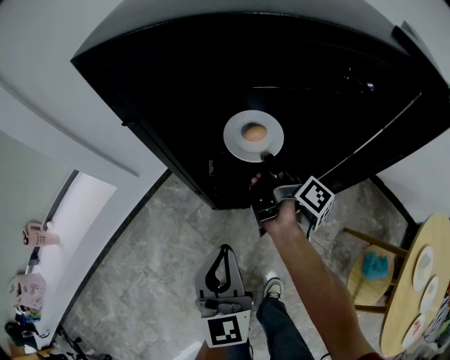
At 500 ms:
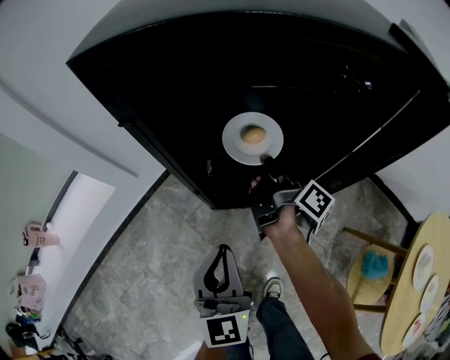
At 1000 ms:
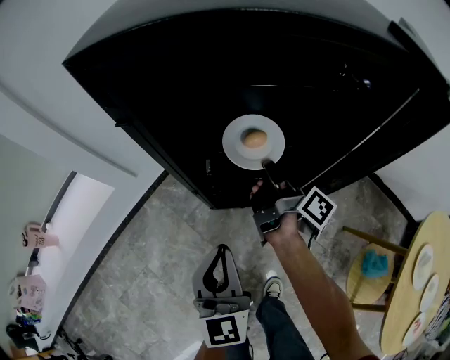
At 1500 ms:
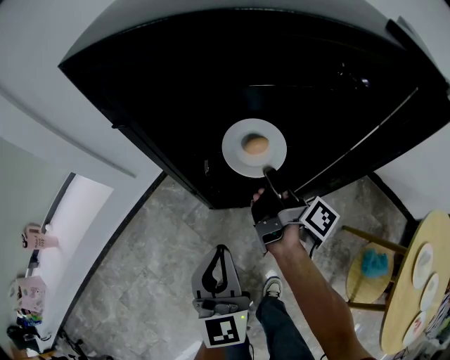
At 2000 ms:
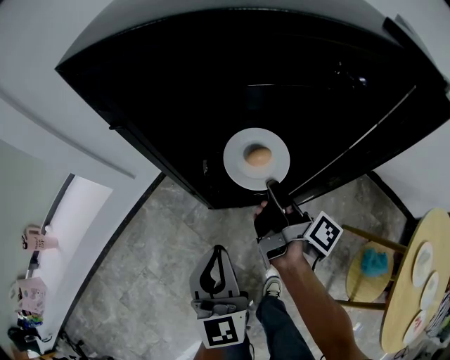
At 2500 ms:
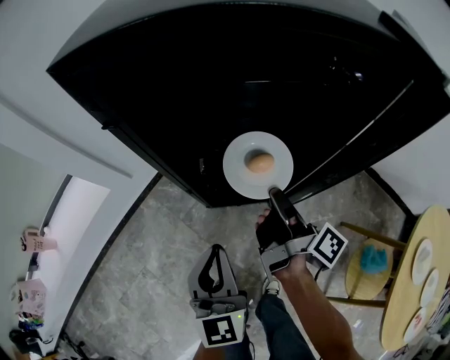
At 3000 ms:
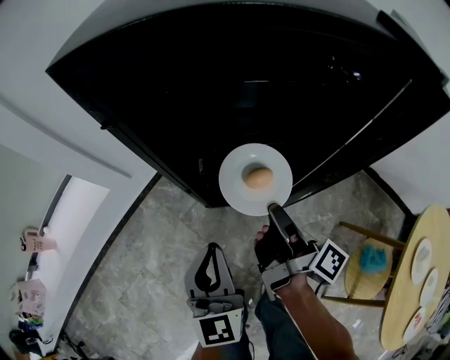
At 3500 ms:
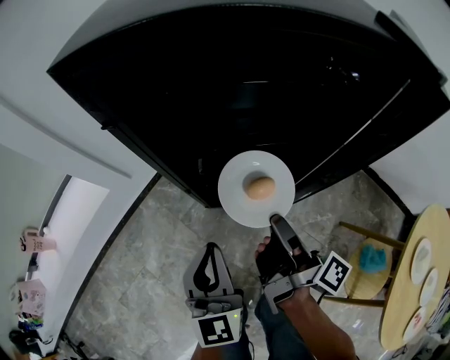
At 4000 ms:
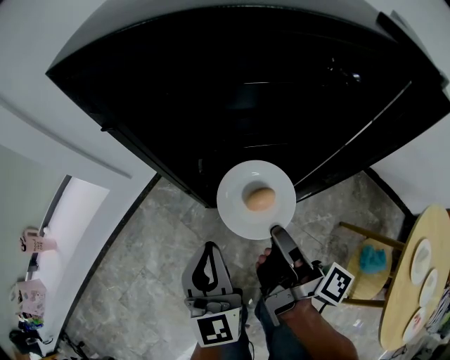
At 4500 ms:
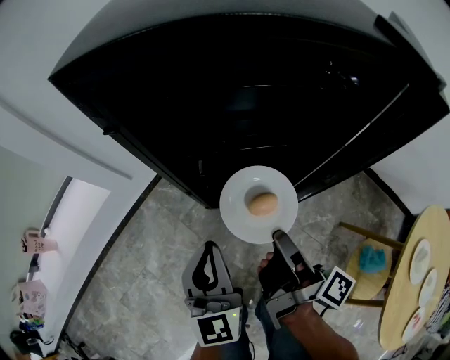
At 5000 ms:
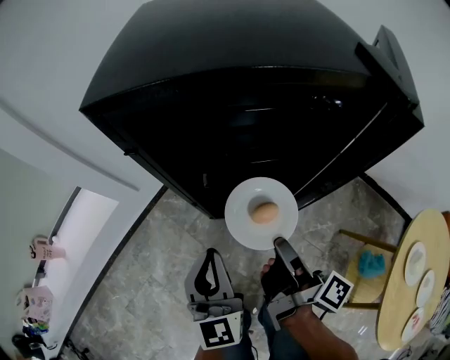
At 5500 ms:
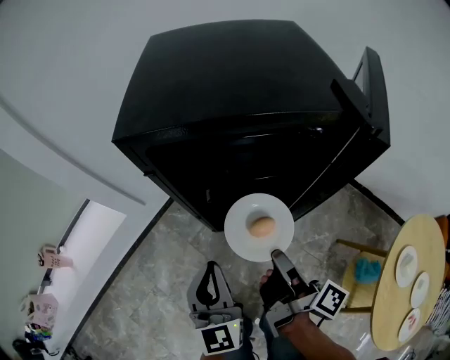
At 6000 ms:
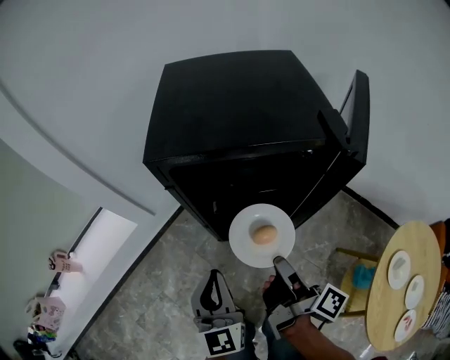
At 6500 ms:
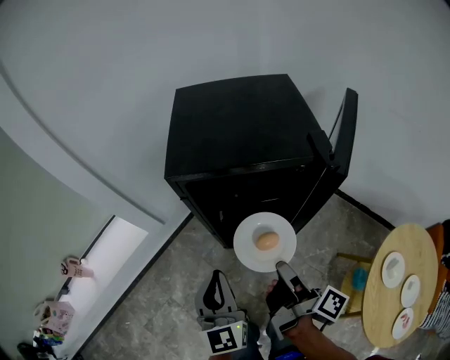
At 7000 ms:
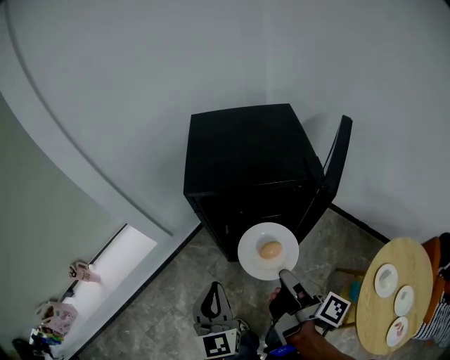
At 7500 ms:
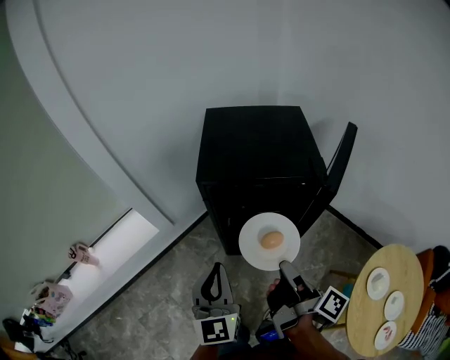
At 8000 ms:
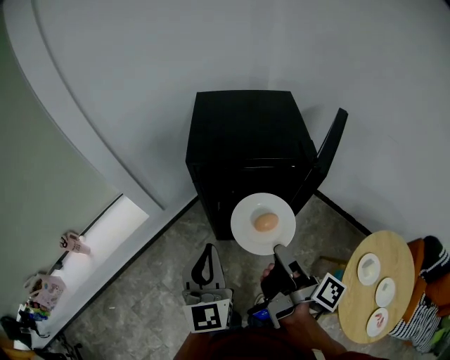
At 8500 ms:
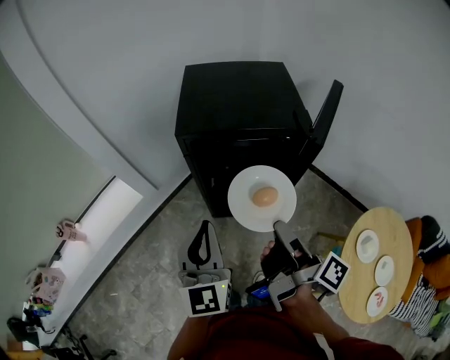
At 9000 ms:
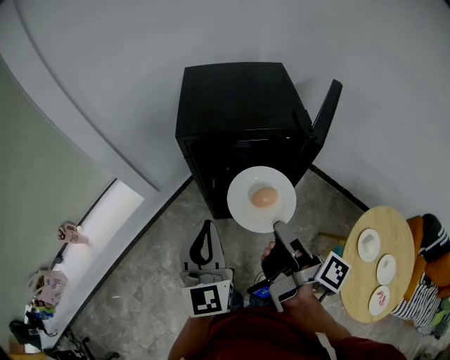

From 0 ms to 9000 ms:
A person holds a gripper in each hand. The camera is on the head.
From 0 ms to 2000 ms: The right gripper travels backward by approximately 10 cm.
From 2000 ms to 4500 ms: The right gripper goes roughly 10 cm backward.
From 4500 ms to 7000 ms: Both grippers travel together upward, approximately 25 cm.
From 7000 ms to 9000 ms: The grippers both shift upward by about 5 cm.

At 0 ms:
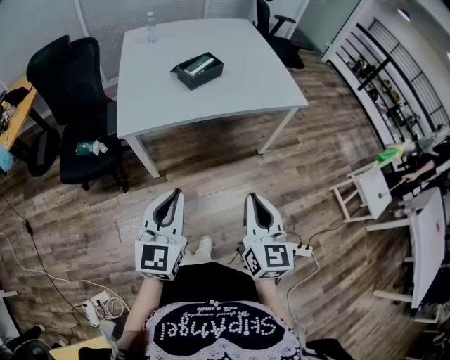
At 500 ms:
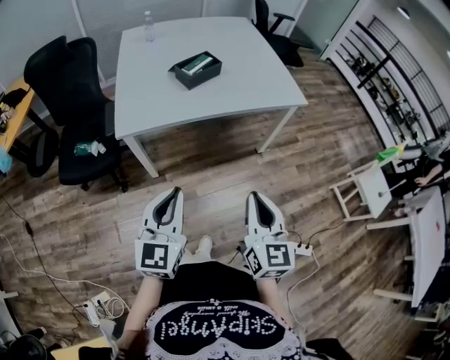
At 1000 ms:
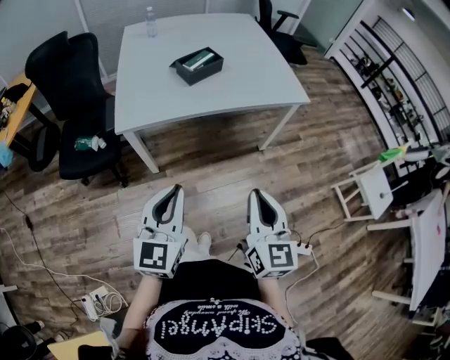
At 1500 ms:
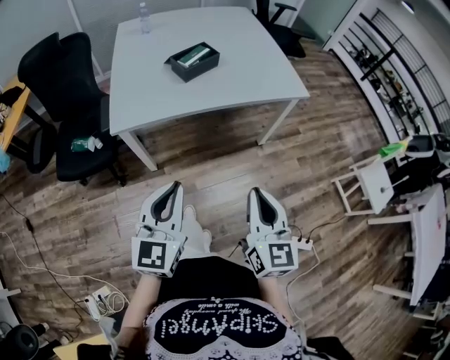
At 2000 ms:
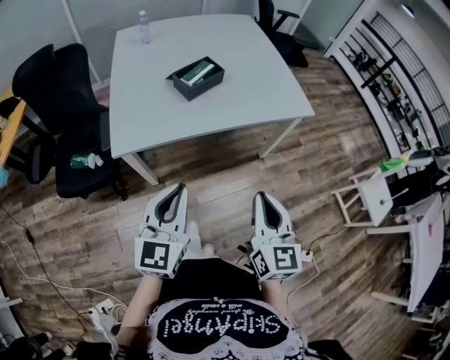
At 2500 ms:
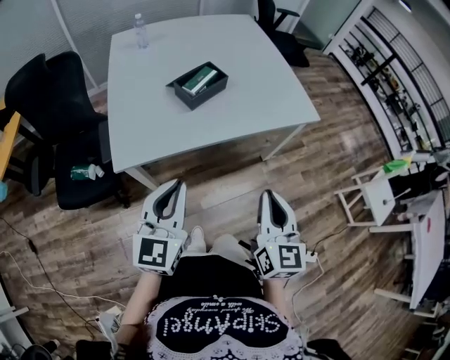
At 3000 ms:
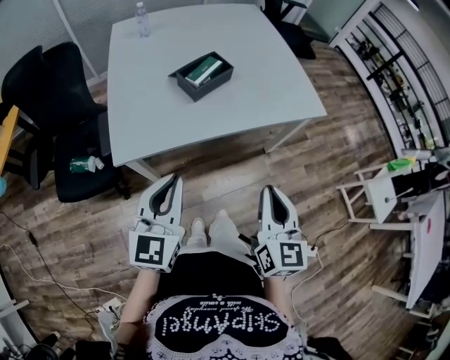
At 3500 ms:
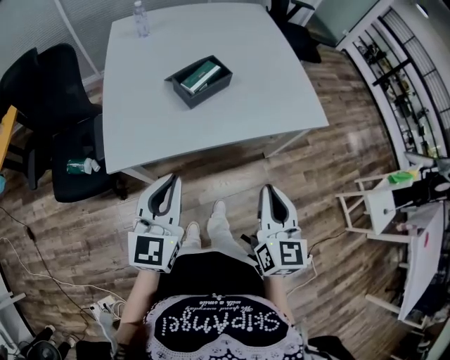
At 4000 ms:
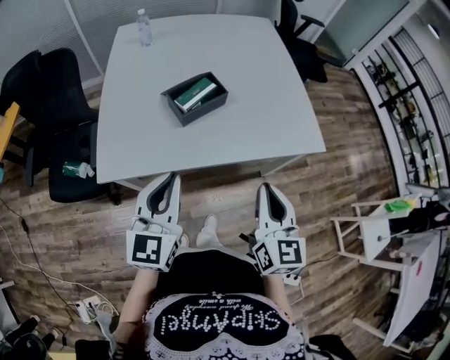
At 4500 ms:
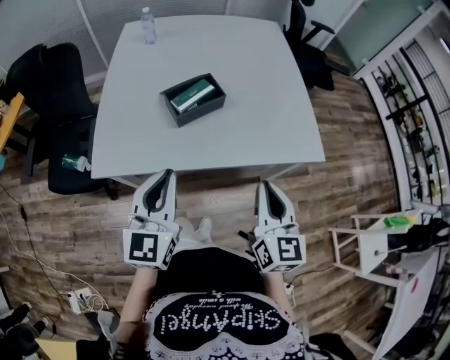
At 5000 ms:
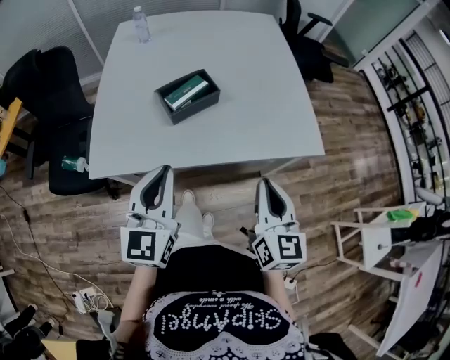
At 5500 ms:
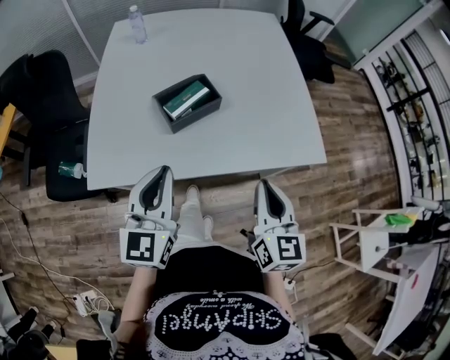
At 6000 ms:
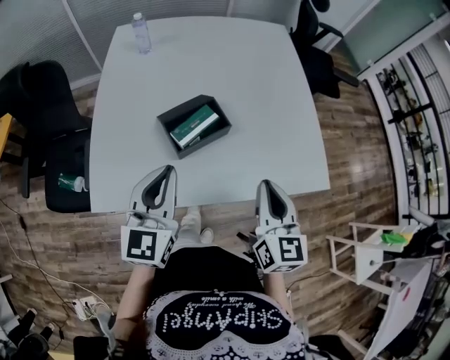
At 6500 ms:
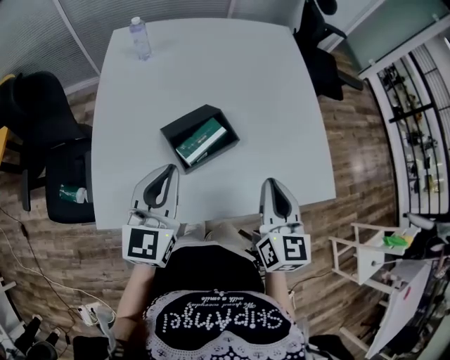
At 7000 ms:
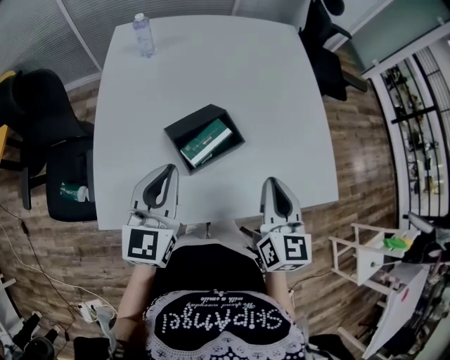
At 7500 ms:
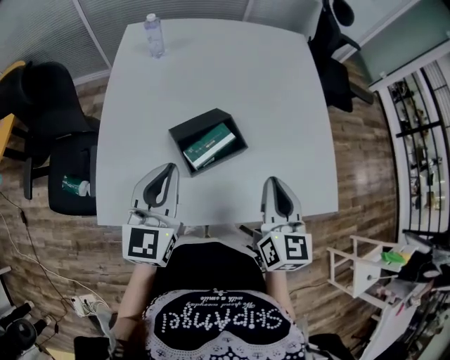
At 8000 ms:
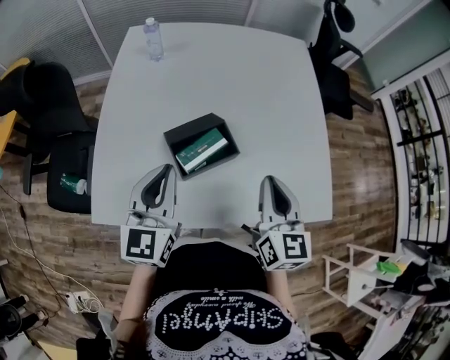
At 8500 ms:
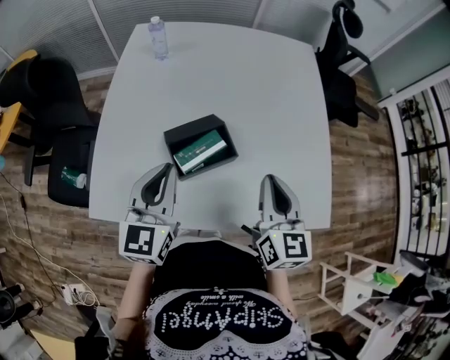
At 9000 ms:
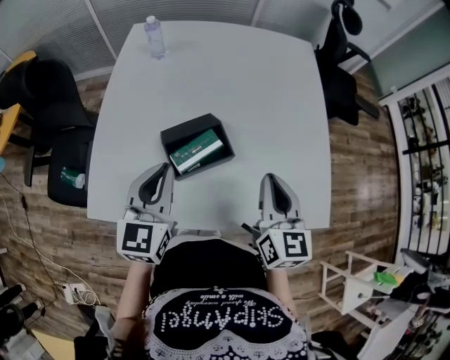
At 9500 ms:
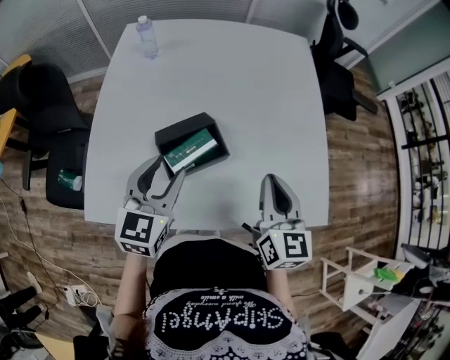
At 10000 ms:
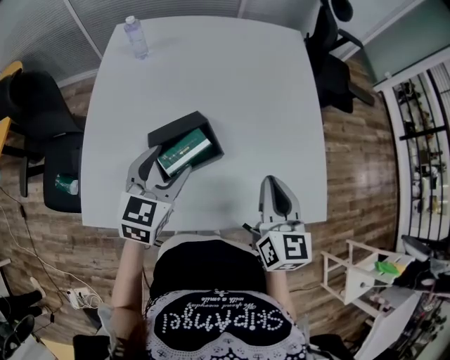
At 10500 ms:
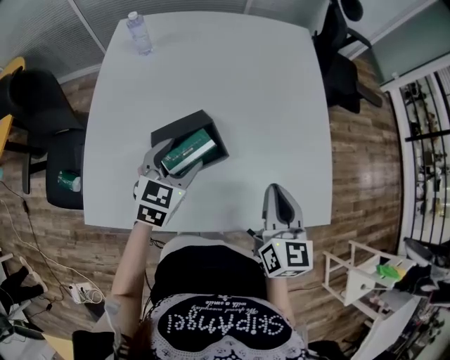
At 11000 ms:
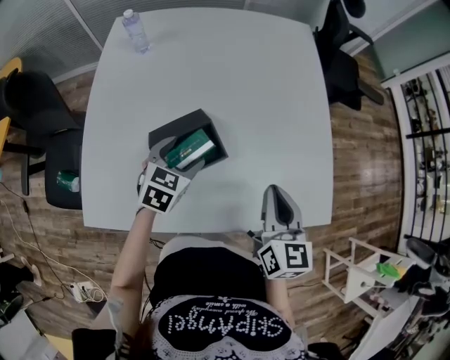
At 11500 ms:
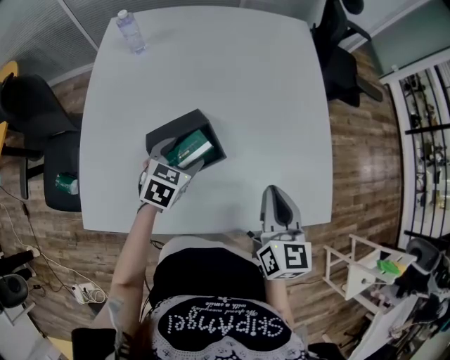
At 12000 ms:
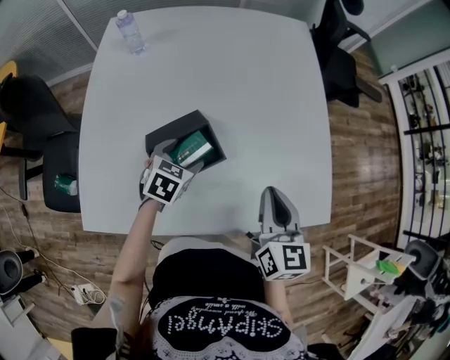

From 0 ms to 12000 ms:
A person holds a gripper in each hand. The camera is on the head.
From 0 ms to 2000 ms: Both grippers travel together forward, roughly 10 cm.
From 2000 ms to 4000 ms: The grippers both shift forward by about 20 cm.
From 4000 ms to 6000 ms: The grippers both shift forward by about 15 cm.
From 6000 ms to 8000 ms: The two grippers go some 10 cm forward.
From 8000 ms to 10000 ms: The left gripper moves downward, to the right and forward, roughly 10 cm, changes its angle by roughly 20 degrees, and opens its fingers. Meanwhile the right gripper heads to the right, covering some 5 cm.
From 10000 ms to 12000 ms: The left gripper is displaced downward by about 15 cm, and changes its angle by approximately 30 degrees.

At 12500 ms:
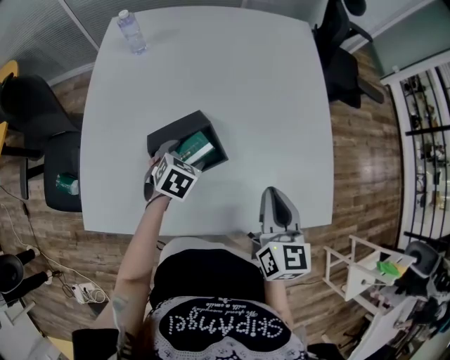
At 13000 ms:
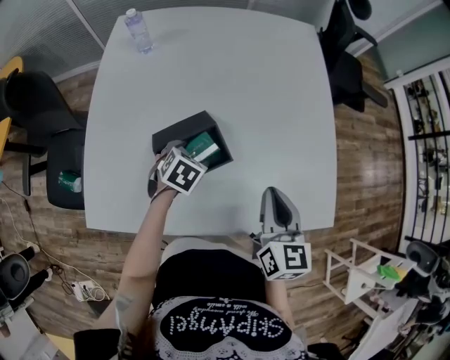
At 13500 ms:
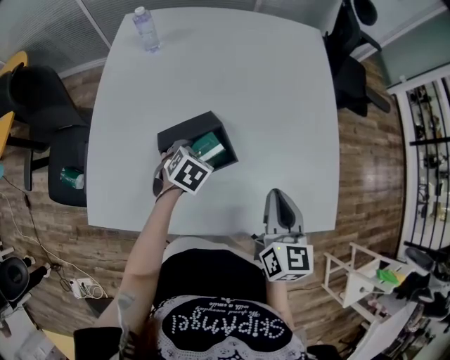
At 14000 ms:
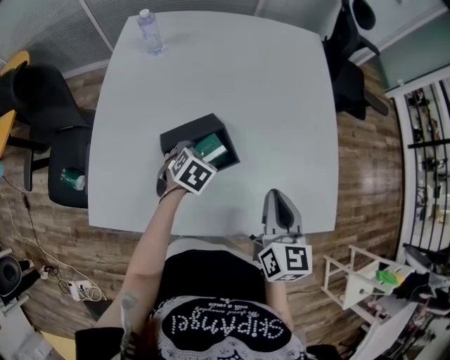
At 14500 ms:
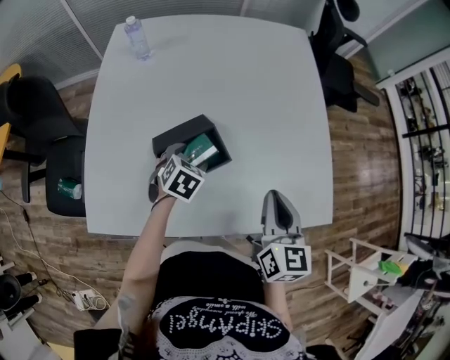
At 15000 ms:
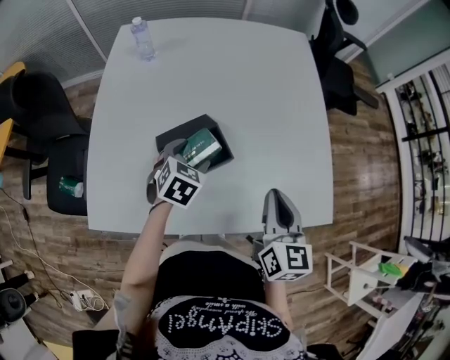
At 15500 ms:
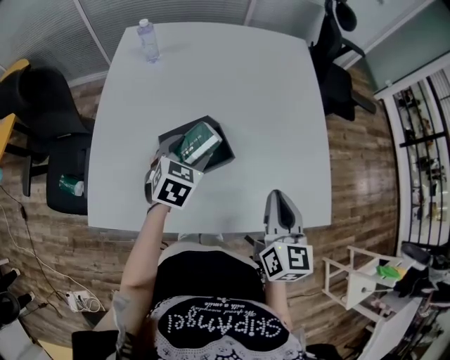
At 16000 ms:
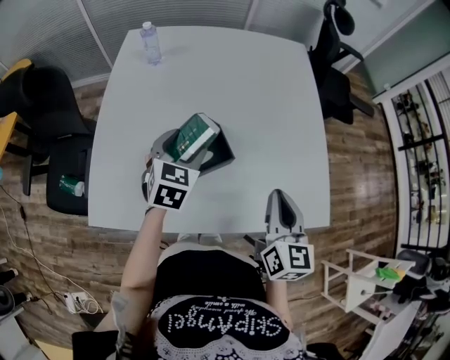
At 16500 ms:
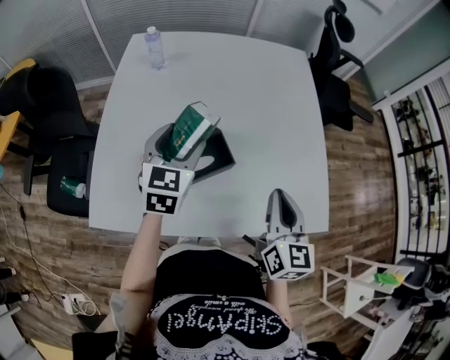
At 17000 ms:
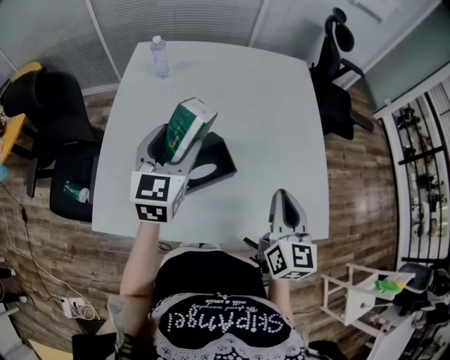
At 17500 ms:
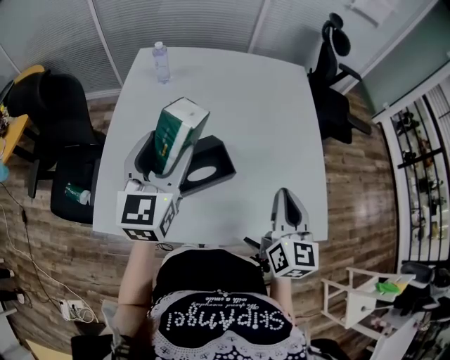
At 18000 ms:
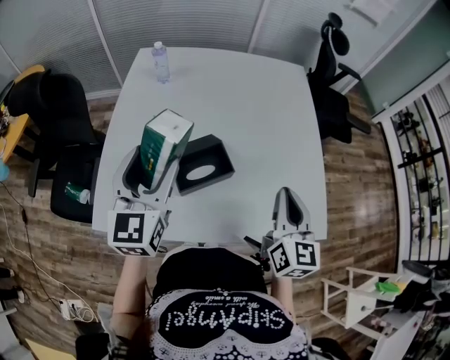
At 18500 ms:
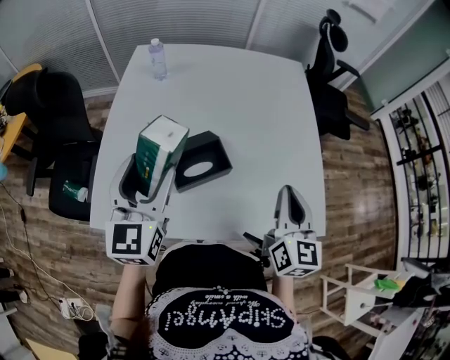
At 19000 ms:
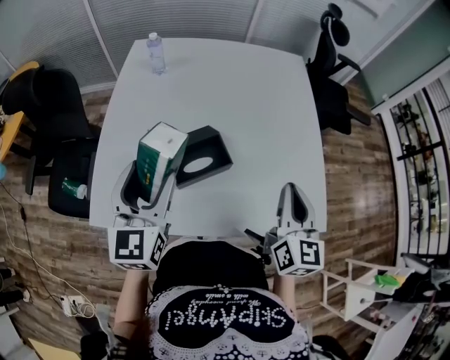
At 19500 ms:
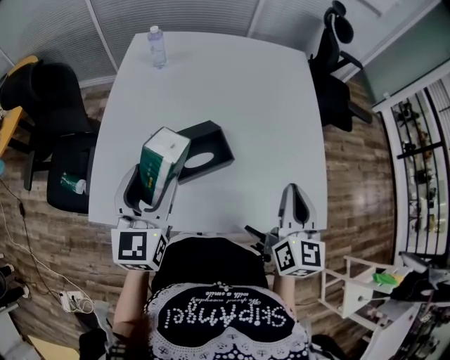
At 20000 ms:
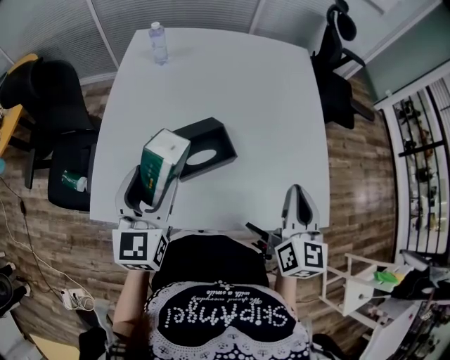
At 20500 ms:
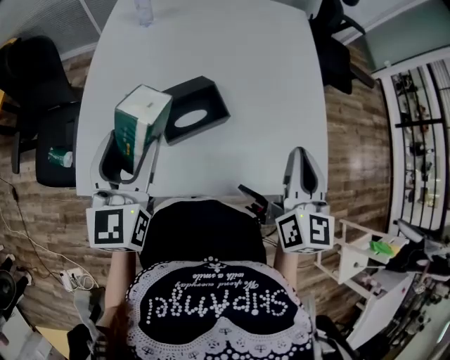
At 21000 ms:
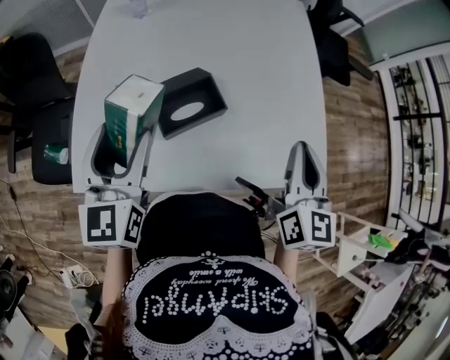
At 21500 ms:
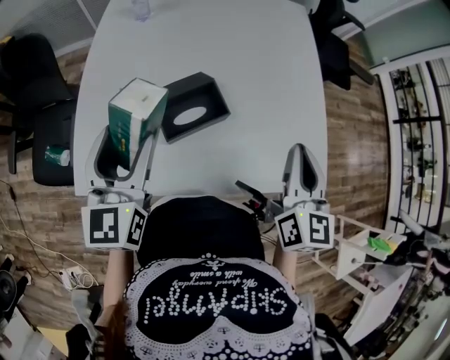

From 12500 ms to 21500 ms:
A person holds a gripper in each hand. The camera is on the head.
From 12500 ms to 14500 ms: The grippers move only a little.
From 14500 ms to 17000 ms: The left gripper goes approximately 25 cm upward, and tilts its fingers some 40 degrees upward.
From 17000 ms to 19500 ms: The left gripper shifts about 10 cm backward.
From 19500 ms to 21500 ms: The grippers move only a little.
